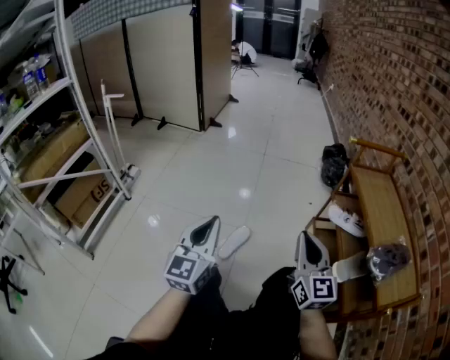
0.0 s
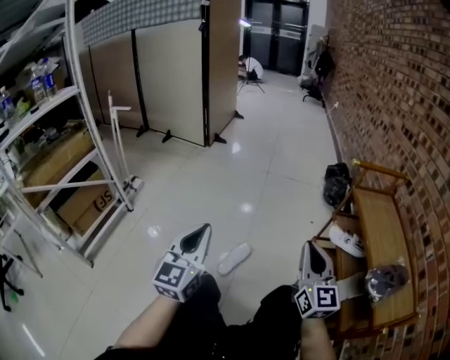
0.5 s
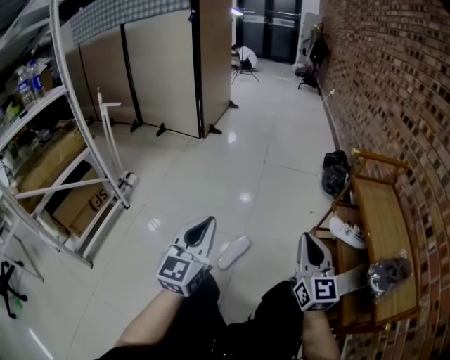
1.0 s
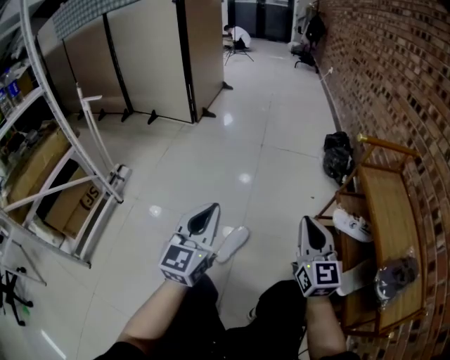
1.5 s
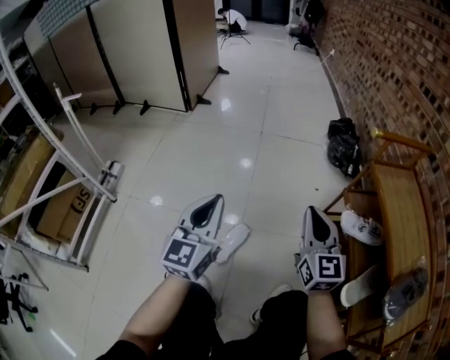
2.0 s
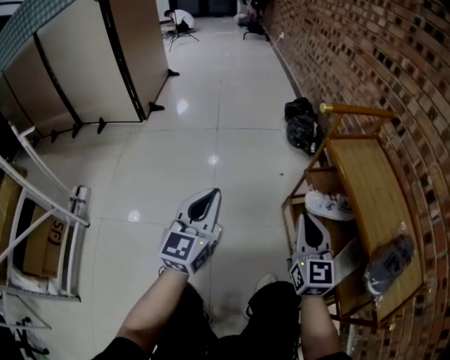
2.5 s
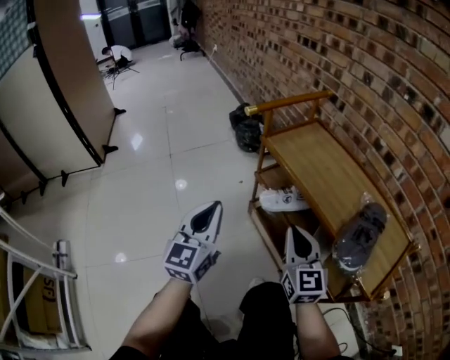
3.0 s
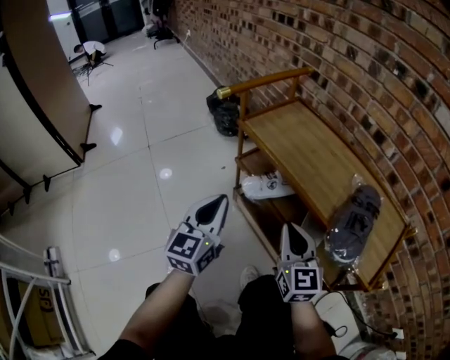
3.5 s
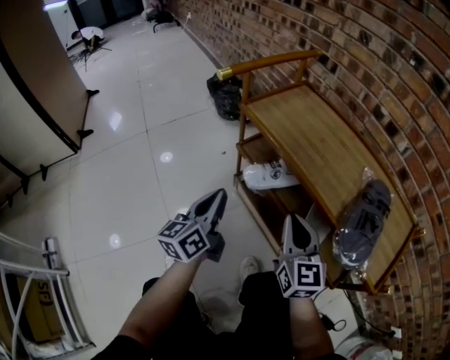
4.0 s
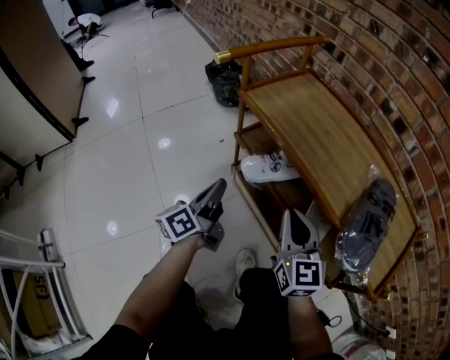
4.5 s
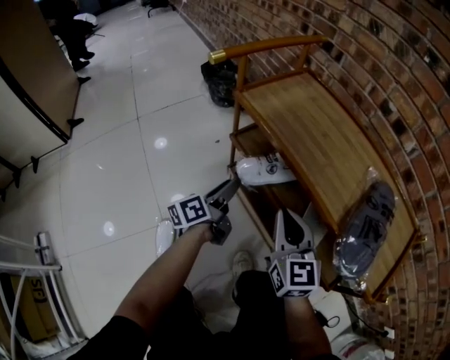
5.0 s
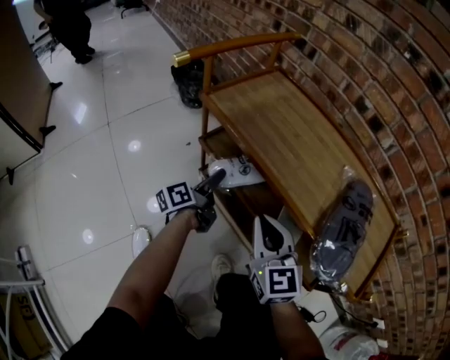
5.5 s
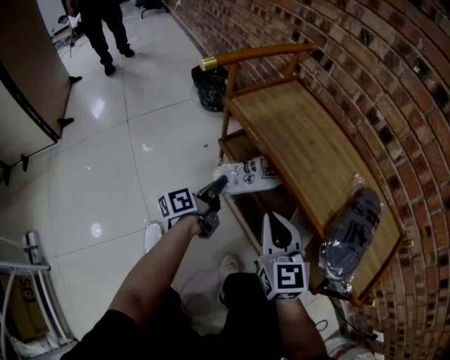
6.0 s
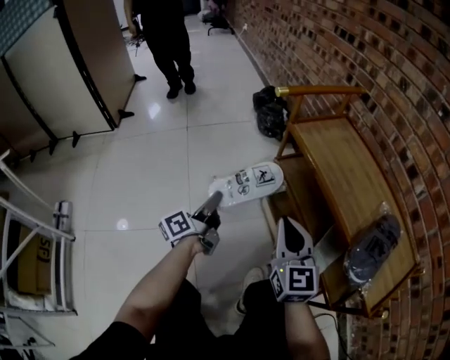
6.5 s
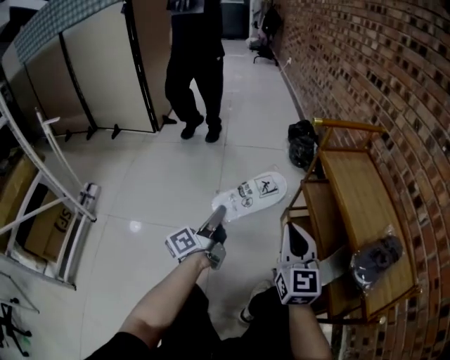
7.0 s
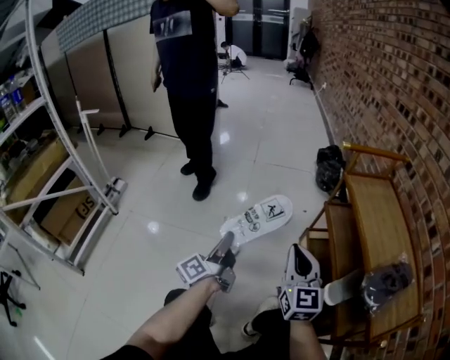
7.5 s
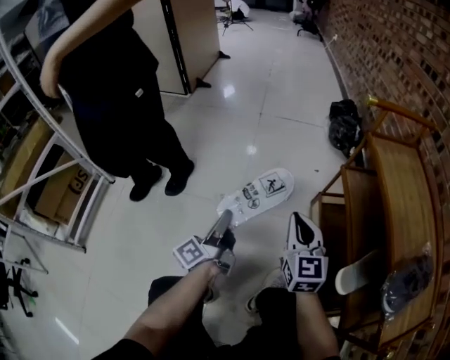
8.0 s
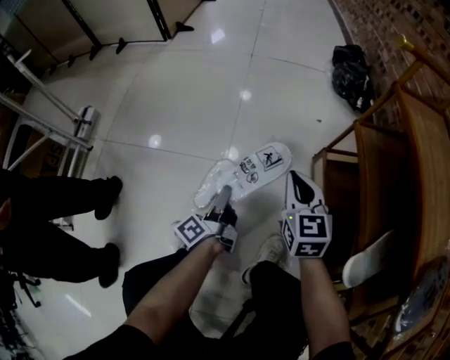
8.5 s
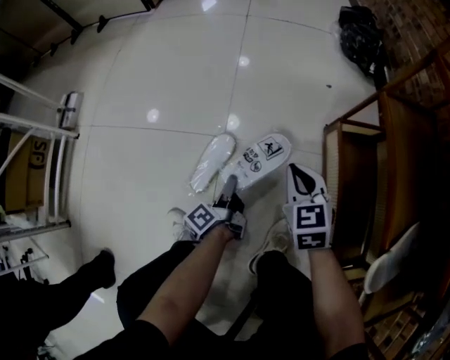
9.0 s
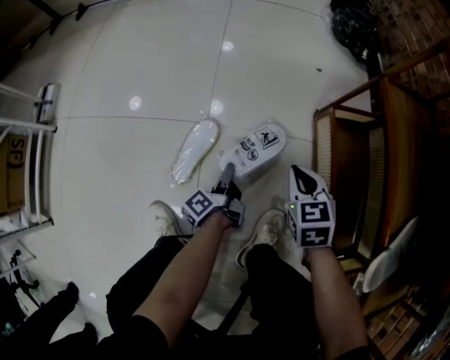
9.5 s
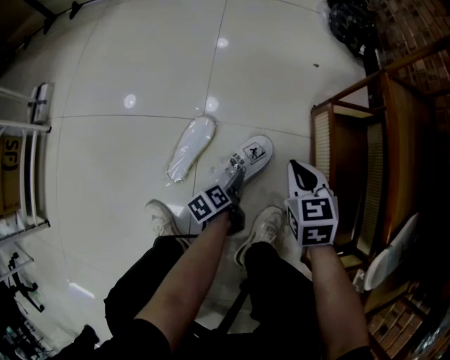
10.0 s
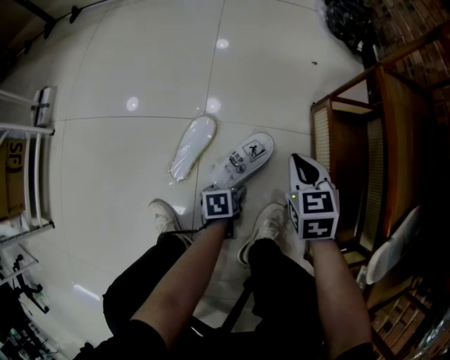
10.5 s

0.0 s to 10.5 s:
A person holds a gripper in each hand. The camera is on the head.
0.0 to 2.0 s: Both grippers move forward, some 20 cm.
2.0 to 4.0 s: The right gripper changes place by some 25 cm, and rotates roughly 40 degrees. The left gripper moves about 35 cm, and rotates approximately 50 degrees.
4.0 to 6.5 s: The two grippers go some 10 cm to the left. The left gripper rotates approximately 30 degrees, and opens and closes again.
6.5 to 8.5 s: The right gripper moves about 20 cm, and changes its angle by roughly 30 degrees, while the left gripper ends up roughly 25 cm from where it was, and swivels approximately 40 degrees.
8.5 to 10.5 s: The right gripper is displaced downward by roughly 20 cm, and changes its angle by approximately 20 degrees. Meanwhile the left gripper travels downward by roughly 30 cm, tilts its fingers about 60 degrees downward, and opens.

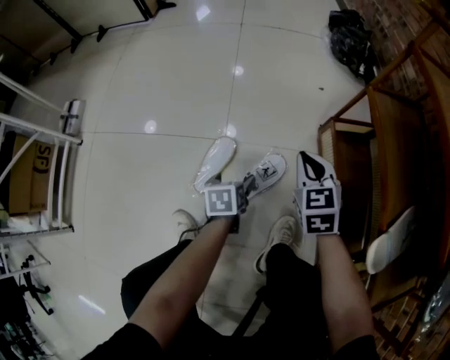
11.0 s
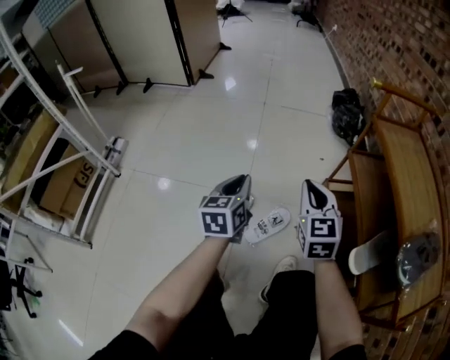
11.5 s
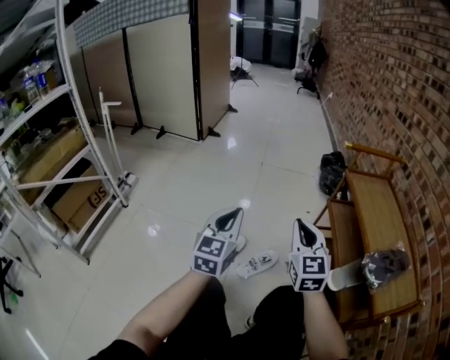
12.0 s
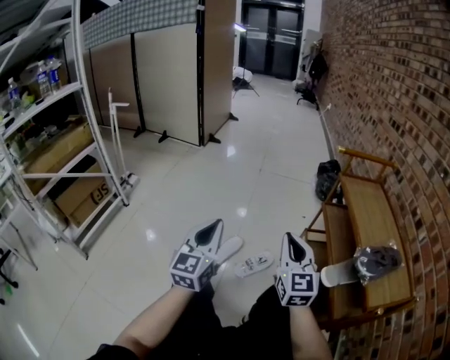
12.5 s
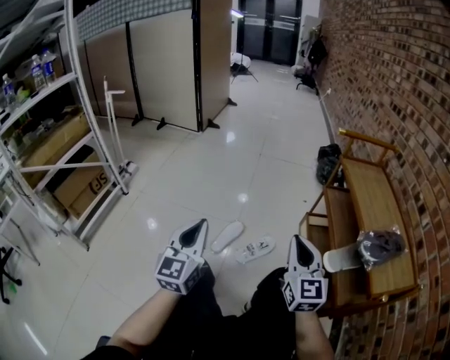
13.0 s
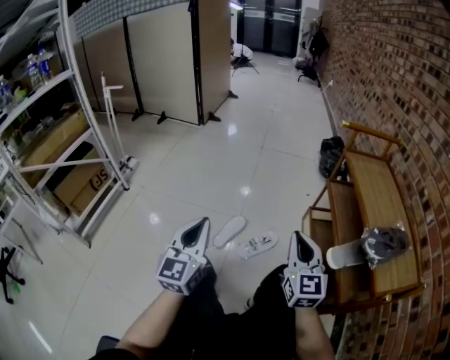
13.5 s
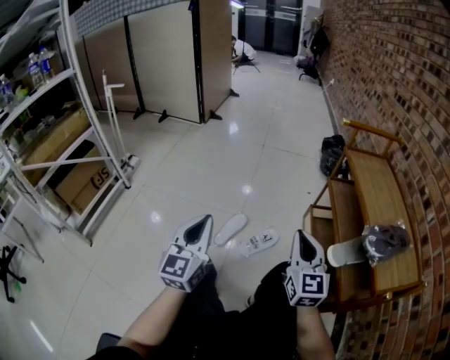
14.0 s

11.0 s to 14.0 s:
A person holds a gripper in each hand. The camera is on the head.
11.0 to 12.5 s: The right gripper is displaced upward and backward by some 40 cm, and angles its fingers upward, by roughly 40 degrees; the left gripper goes roughly 50 cm upward, points its fingers approximately 60 degrees further upward, and closes up.
12.5 to 14.0 s: The right gripper changes place by approximately 5 cm; the left gripper shifts by approximately 5 cm.

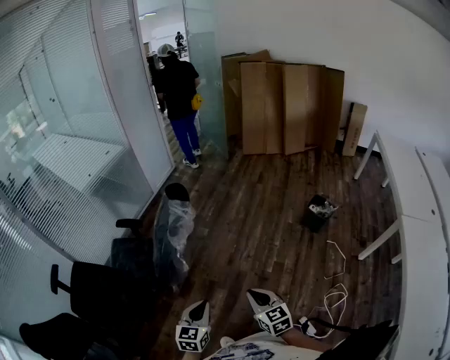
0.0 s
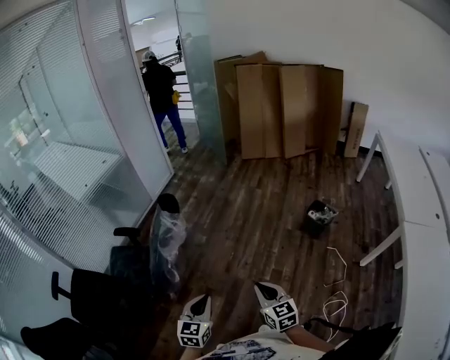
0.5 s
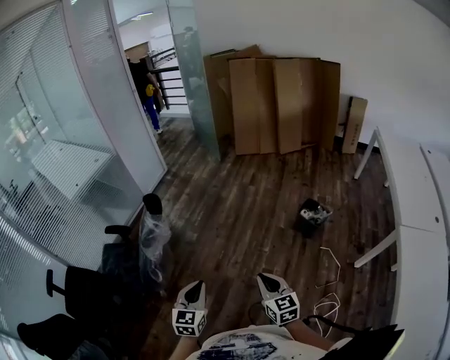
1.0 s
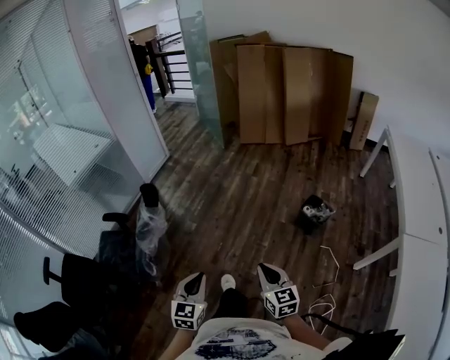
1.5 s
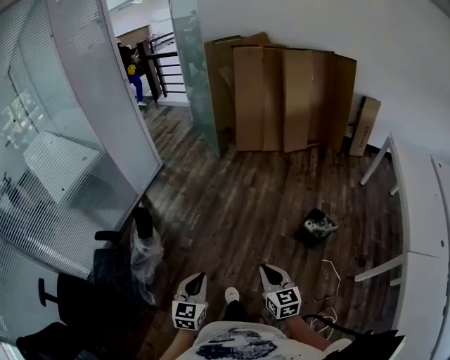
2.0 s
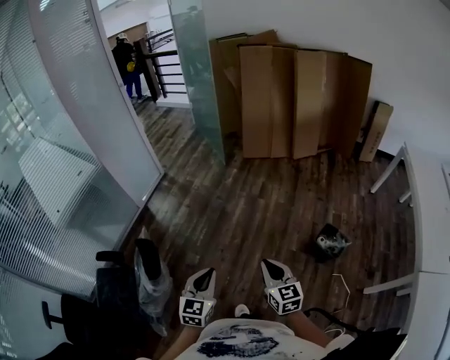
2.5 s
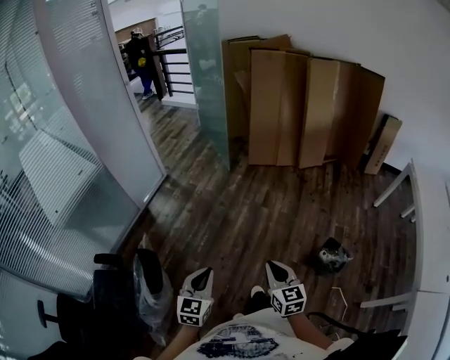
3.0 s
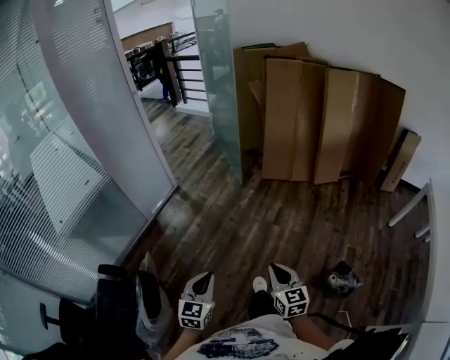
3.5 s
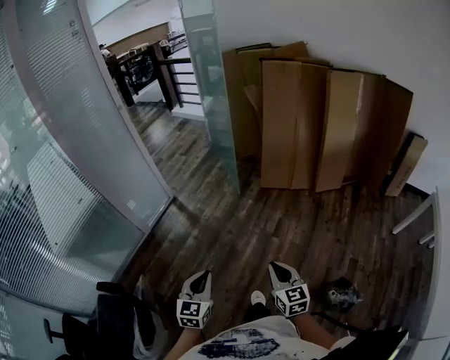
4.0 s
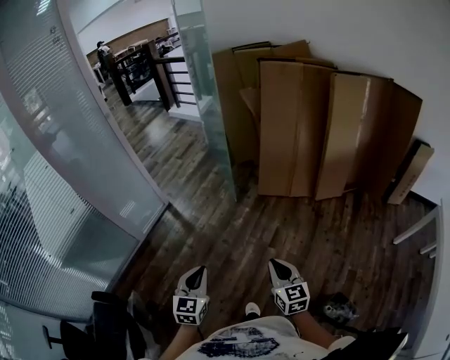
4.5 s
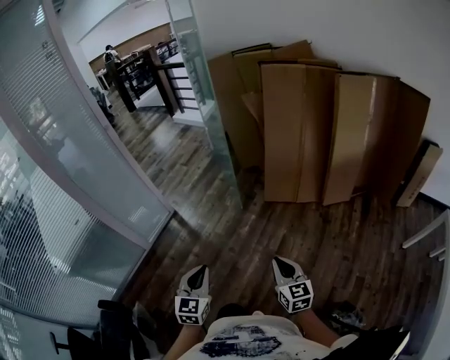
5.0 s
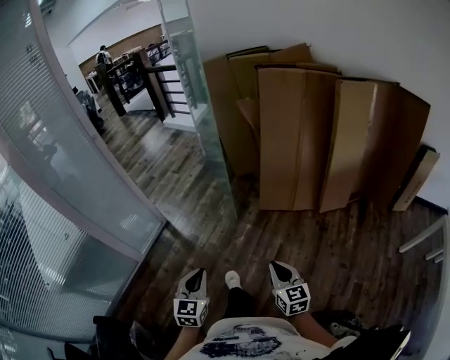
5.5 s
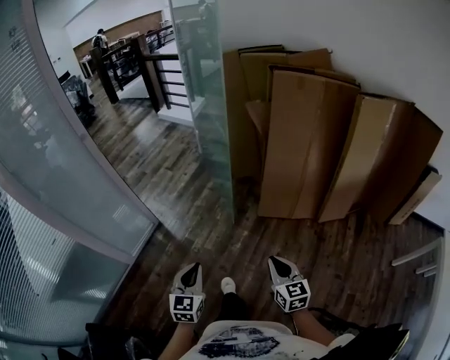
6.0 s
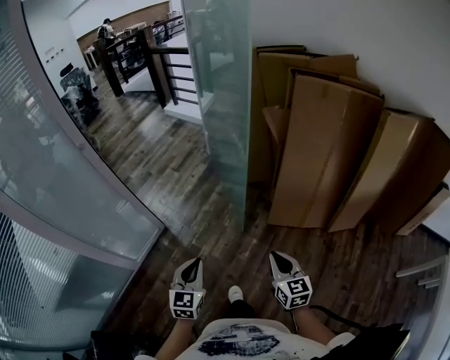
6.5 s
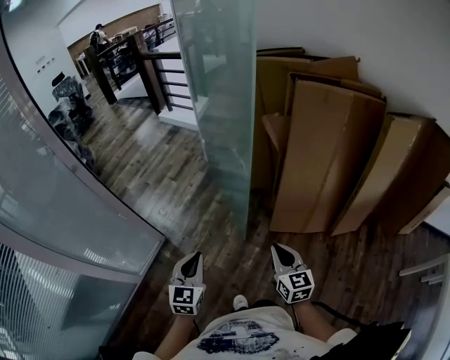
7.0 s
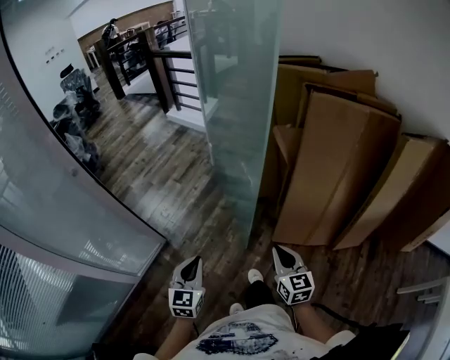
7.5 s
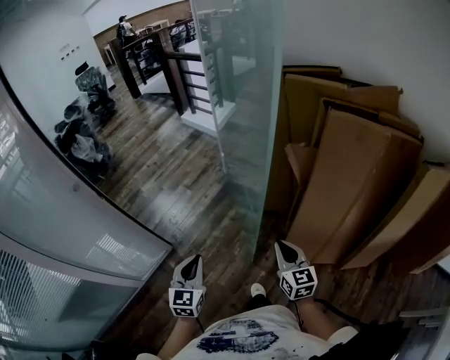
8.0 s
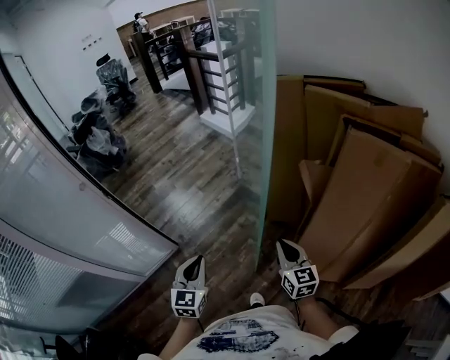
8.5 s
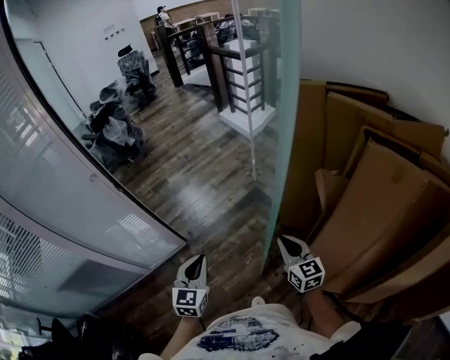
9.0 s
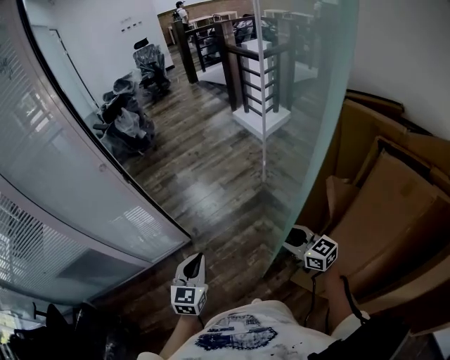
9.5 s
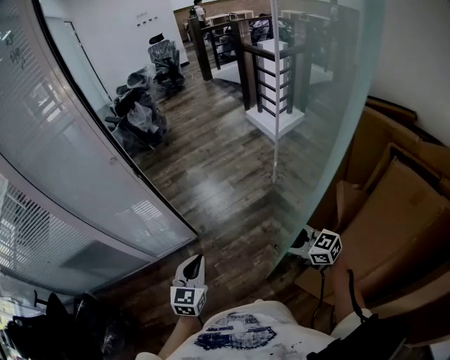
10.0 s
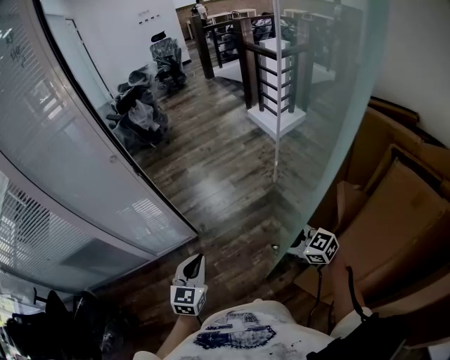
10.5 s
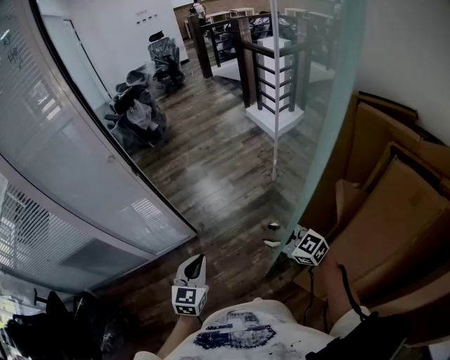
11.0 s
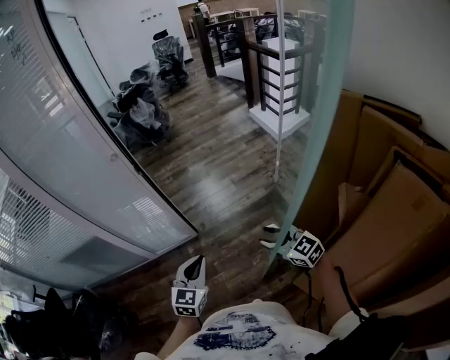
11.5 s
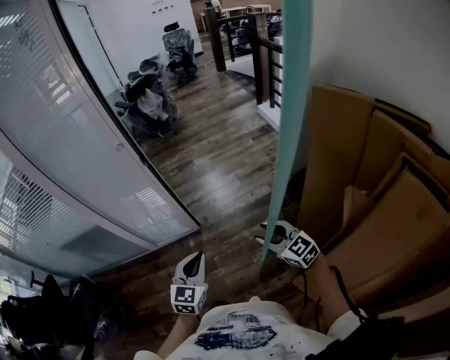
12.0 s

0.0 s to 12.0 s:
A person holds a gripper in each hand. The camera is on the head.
0.0 to 2.0 s: Both grippers move forward and to the right, some 35 cm.
2.0 to 4.0 s: The two grippers travel together, forward, some 50 cm.
4.0 to 6.0 s: Both grippers move forward, approximately 40 cm.
6.0 to 8.0 s: The grippers both shift forward by roughly 40 cm.
8.0 to 10.0 s: The right gripper changes place by approximately 15 cm, turns by approximately 70 degrees, and opens; the left gripper shifts by about 5 cm, and rotates some 20 degrees.
10.0 to 12.0 s: The right gripper shifts about 10 cm to the left and forward, and closes its fingers.

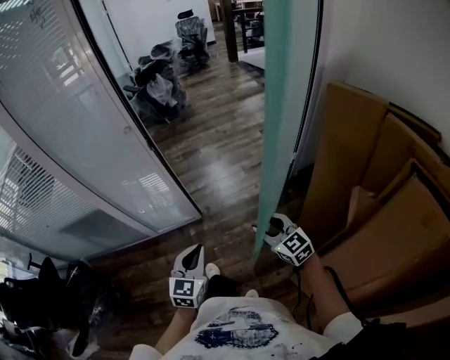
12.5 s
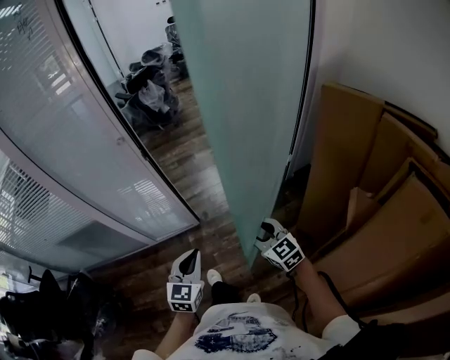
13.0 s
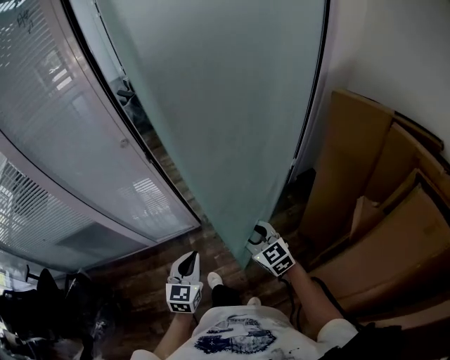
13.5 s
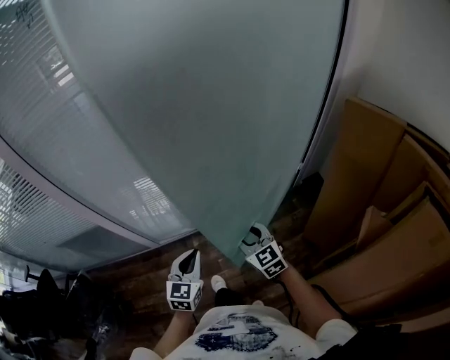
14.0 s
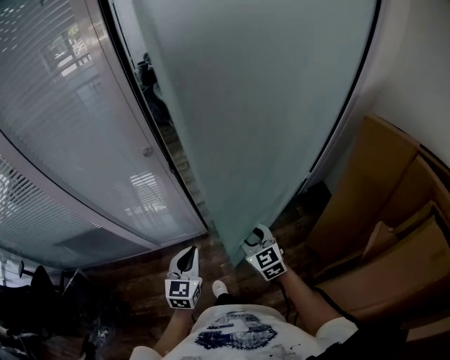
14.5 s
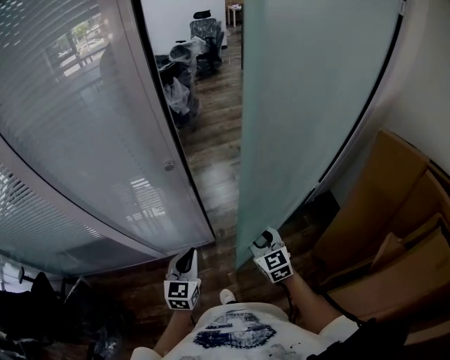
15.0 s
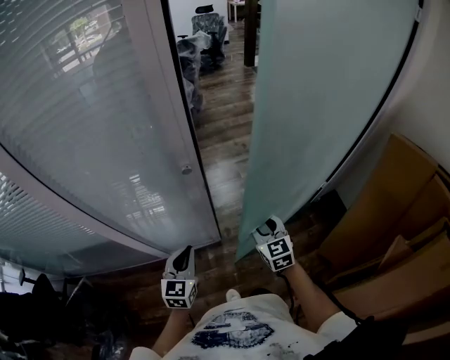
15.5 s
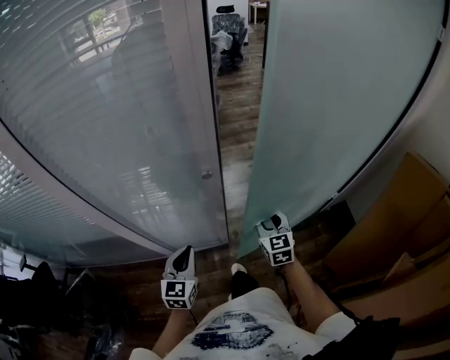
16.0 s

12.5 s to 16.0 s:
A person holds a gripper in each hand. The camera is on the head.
12.5 to 14.5 s: The two grippers go about 20 cm forward and to the left.
14.5 to 16.0 s: The left gripper is displaced to the left and forward by some 20 cm, while the right gripper goes roughly 15 cm forward.
